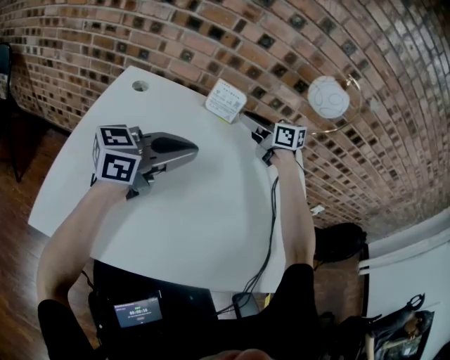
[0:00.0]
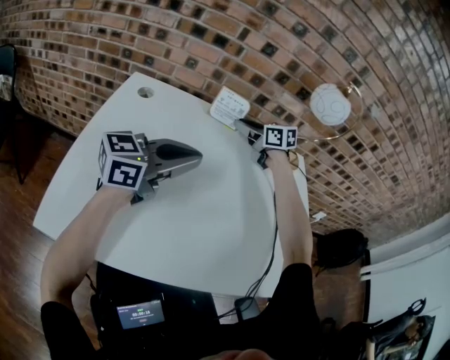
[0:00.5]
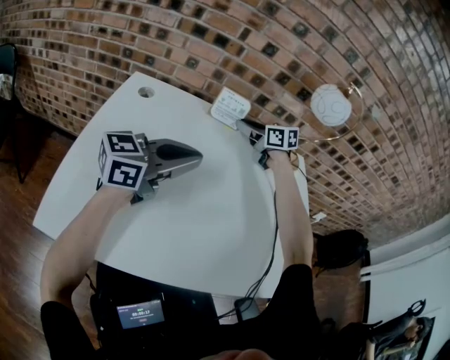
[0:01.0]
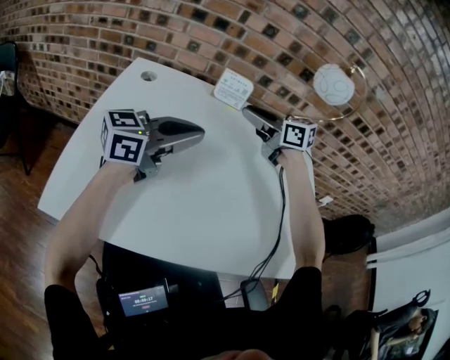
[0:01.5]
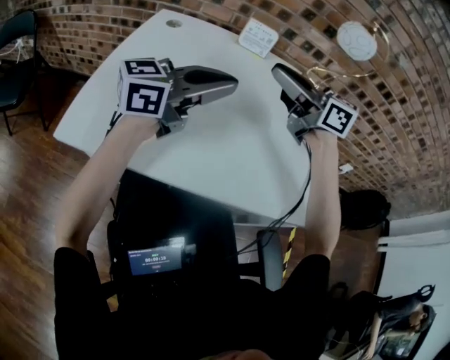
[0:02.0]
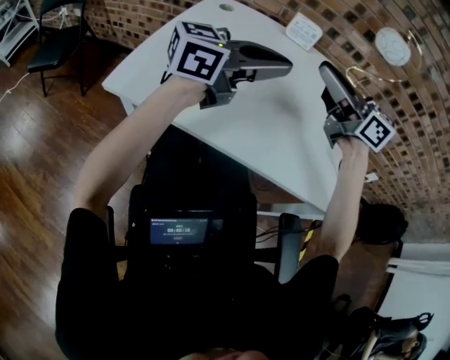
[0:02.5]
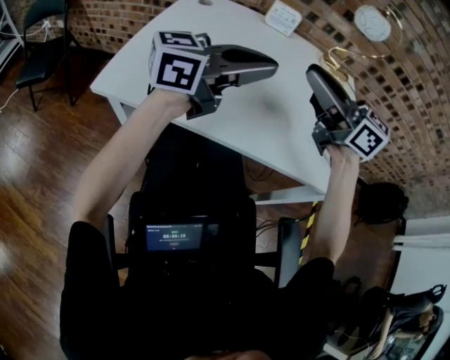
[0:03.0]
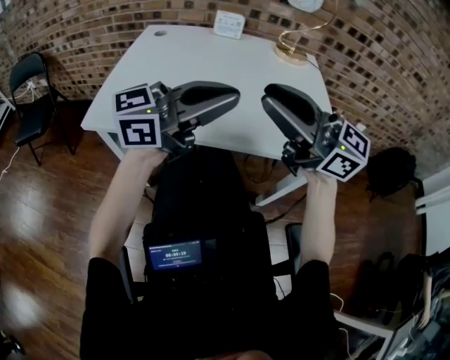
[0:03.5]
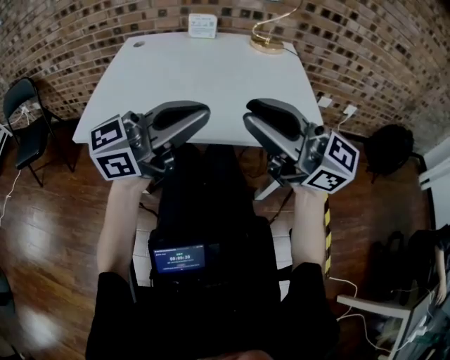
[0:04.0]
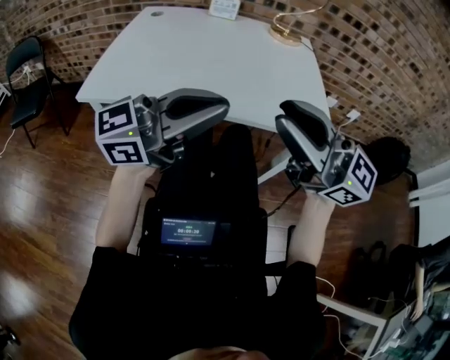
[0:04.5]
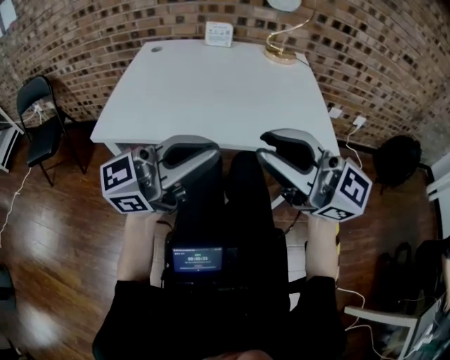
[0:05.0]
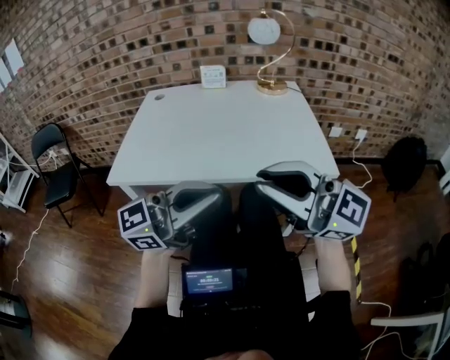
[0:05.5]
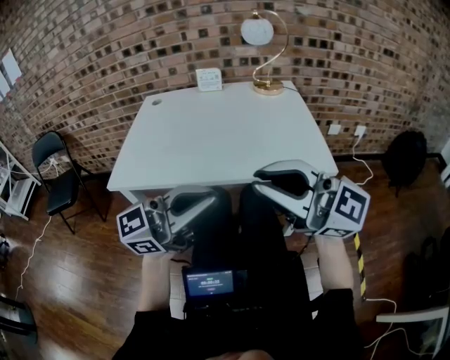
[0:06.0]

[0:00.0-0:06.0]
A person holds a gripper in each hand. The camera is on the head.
0:00.0 to 0:02.0: The left gripper moves roughly 5 cm. The right gripper changes place by about 25 cm.
0:02.0 to 0:04.0: The left gripper shifts by roughly 25 cm, while the right gripper changes place by about 35 cm, and rotates roughly 20 degrees.
0:04.0 to 0:06.0: The right gripper moves approximately 10 cm. The left gripper changes place by approximately 10 cm.

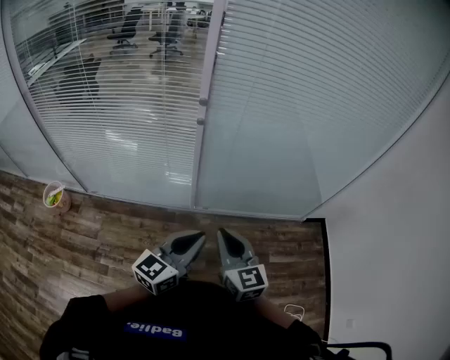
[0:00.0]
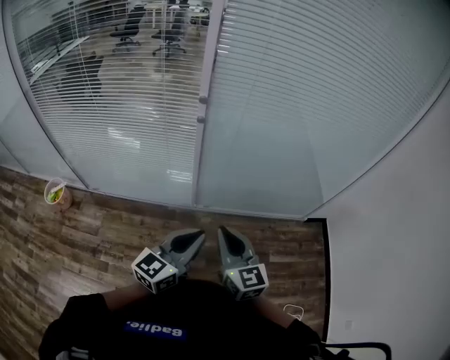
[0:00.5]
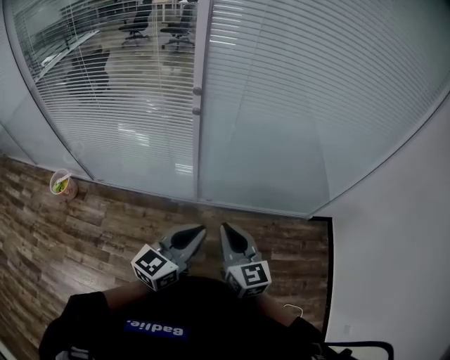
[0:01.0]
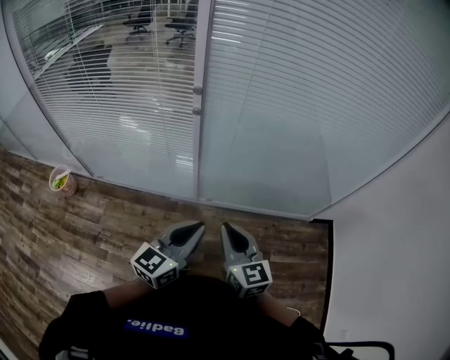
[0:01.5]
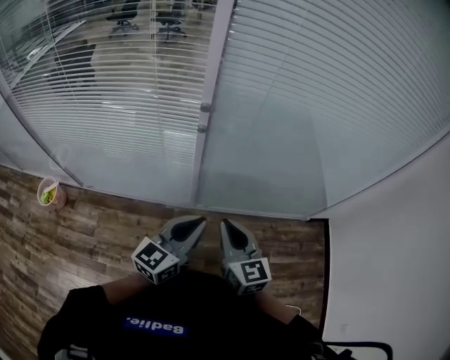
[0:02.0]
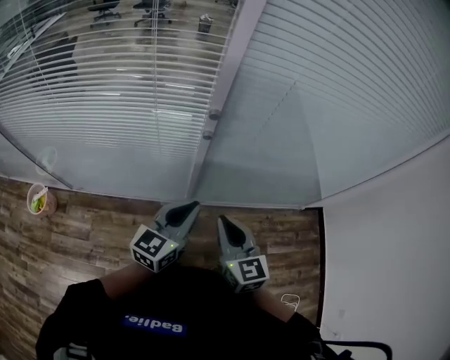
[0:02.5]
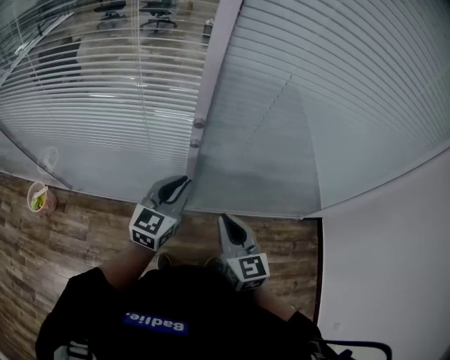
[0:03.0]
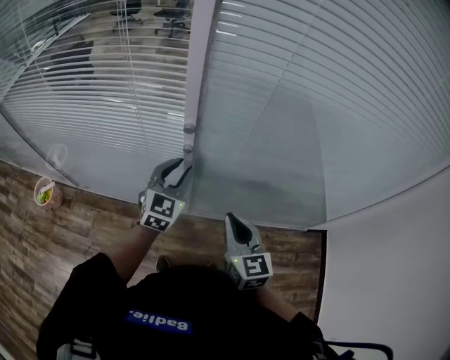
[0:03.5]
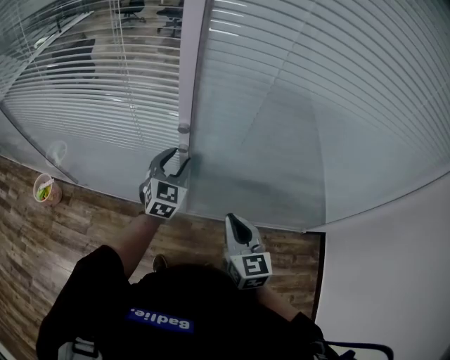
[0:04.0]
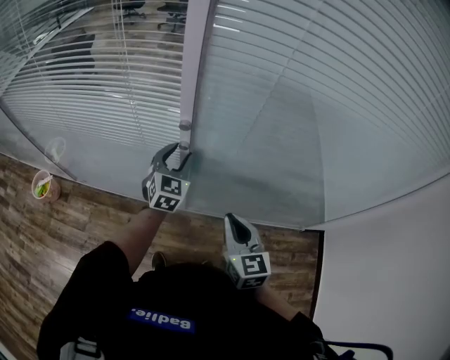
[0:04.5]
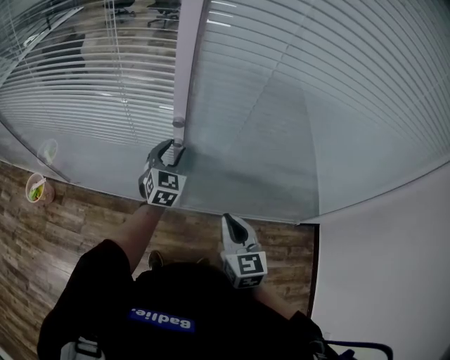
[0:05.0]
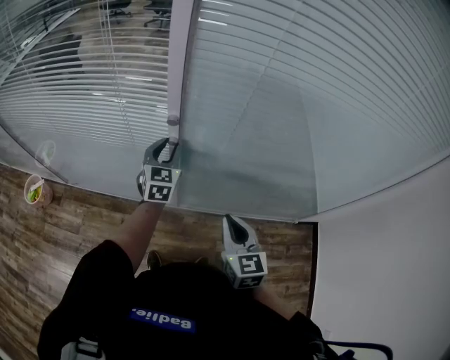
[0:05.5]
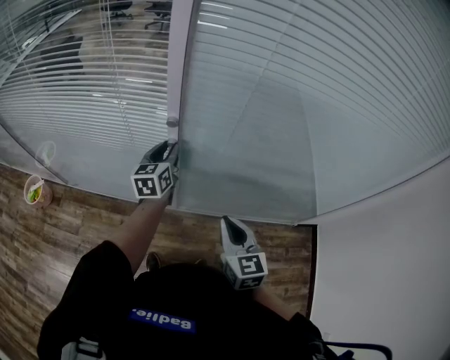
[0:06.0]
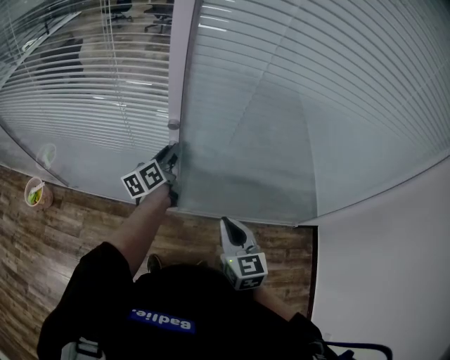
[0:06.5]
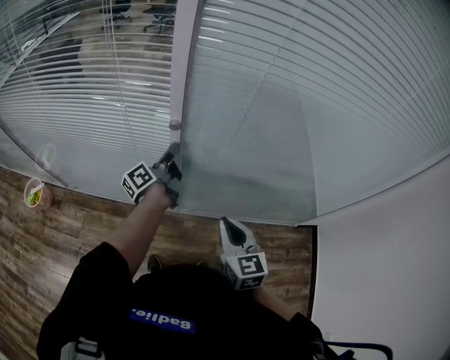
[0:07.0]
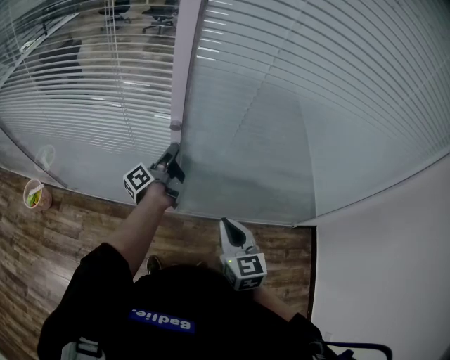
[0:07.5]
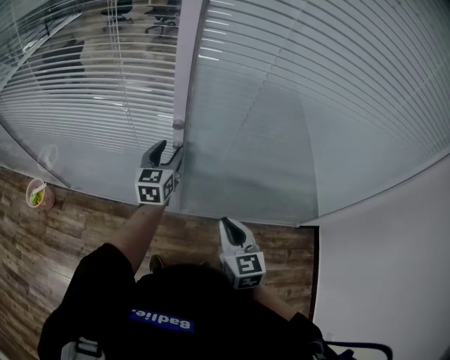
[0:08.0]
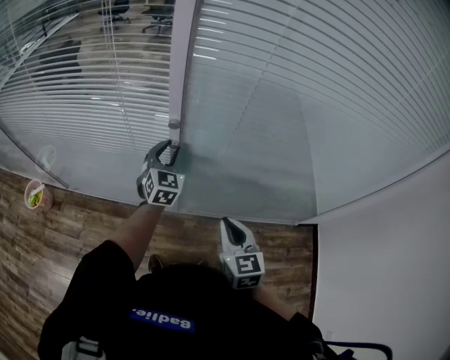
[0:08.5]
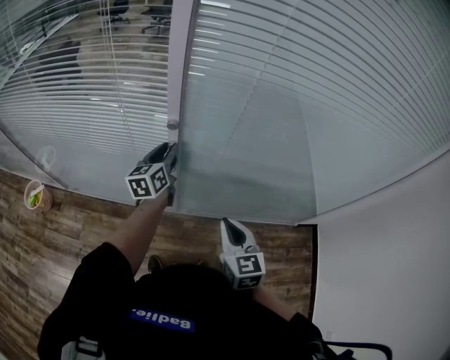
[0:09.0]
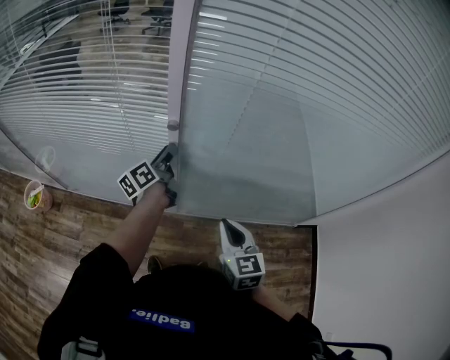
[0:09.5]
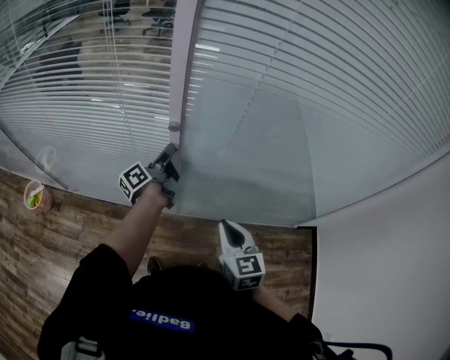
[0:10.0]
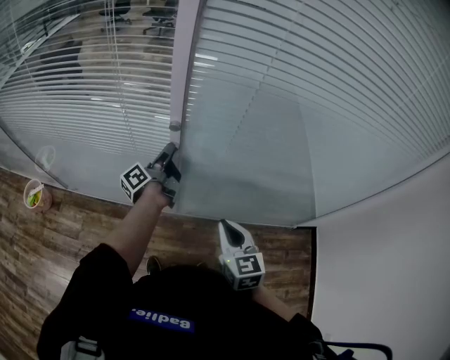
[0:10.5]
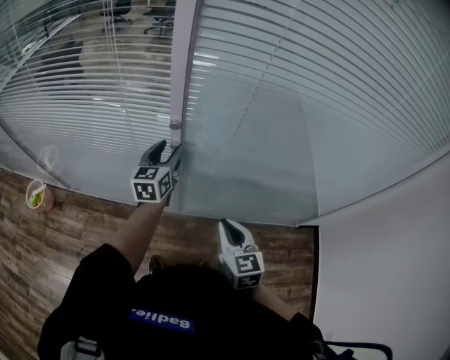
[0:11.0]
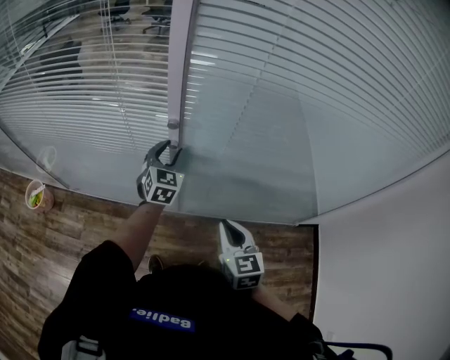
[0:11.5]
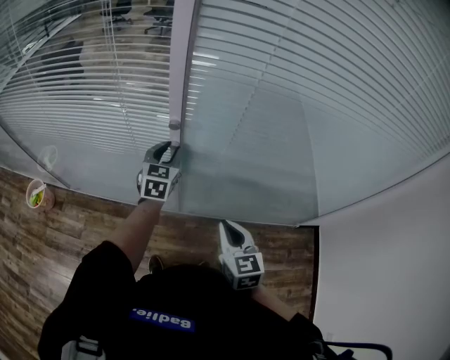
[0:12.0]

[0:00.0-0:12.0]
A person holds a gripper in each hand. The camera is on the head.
0:00.0 to 0:02.0: Both grippers travel together forward, roughly 10 cm.
0:02.0 to 0:04.0: The right gripper heads forward and to the right, covering roughly 10 cm. Meanwhile the left gripper heads forward, covering roughly 25 cm, rotates some 40 degrees, and opens its fingers.
0:04.0 to 0:06.0: The left gripper changes its angle by some 40 degrees.
0:06.0 to 0:08.0: The left gripper opens its fingers.
0:08.0 to 0:10.0: The left gripper rotates around the line of its fingers by some 70 degrees, counterclockwise from behind, and closes its fingers.
0:10.0 to 0:12.0: The left gripper rotates around the line of its fingers by approximately 80 degrees, clockwise from behind, and opens, then closes once more.

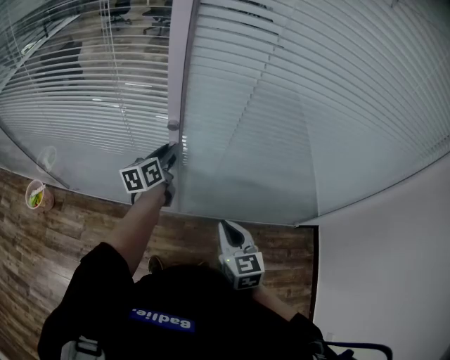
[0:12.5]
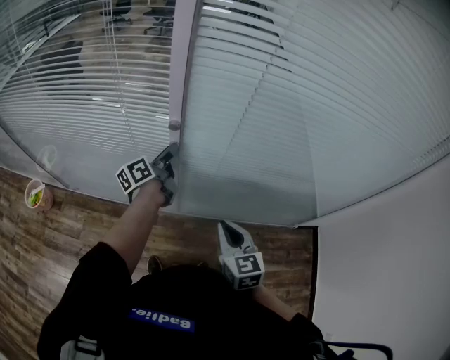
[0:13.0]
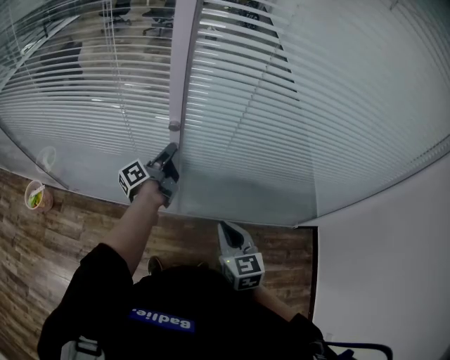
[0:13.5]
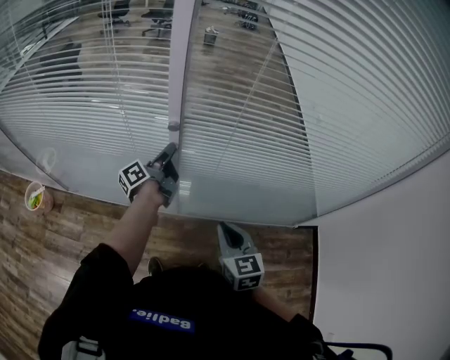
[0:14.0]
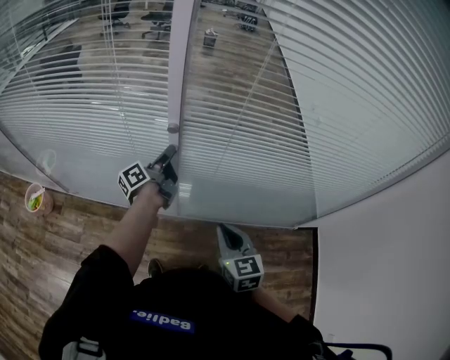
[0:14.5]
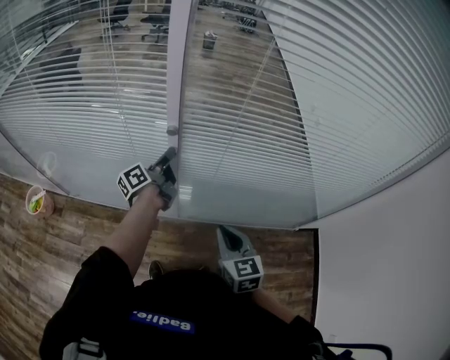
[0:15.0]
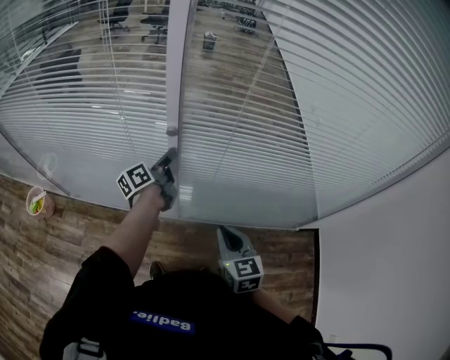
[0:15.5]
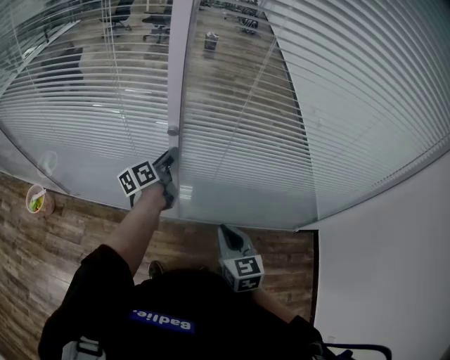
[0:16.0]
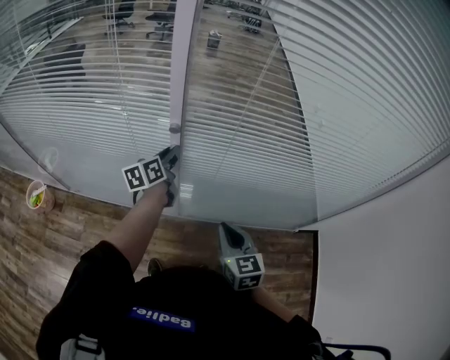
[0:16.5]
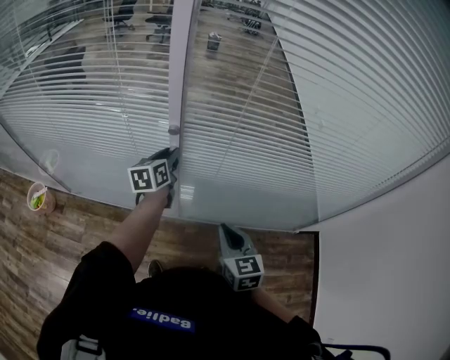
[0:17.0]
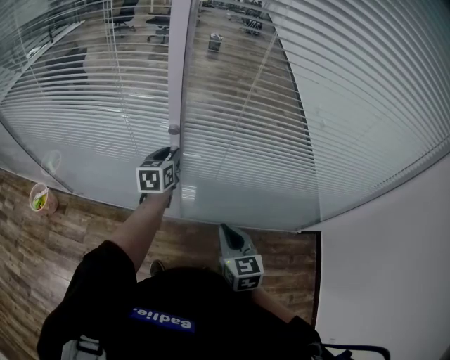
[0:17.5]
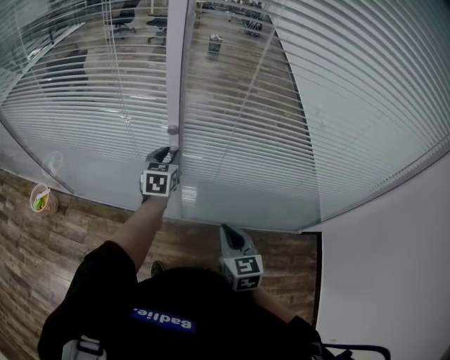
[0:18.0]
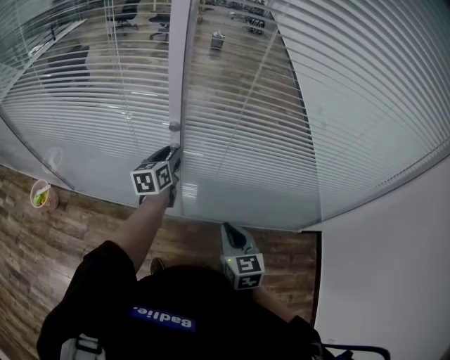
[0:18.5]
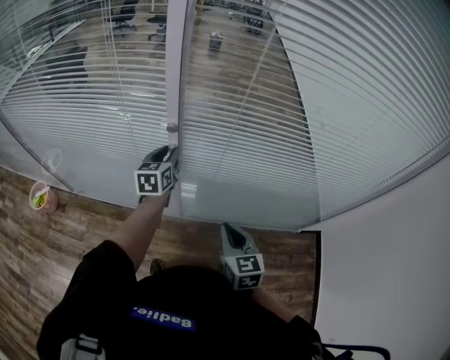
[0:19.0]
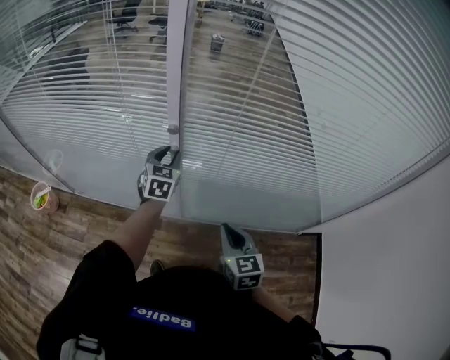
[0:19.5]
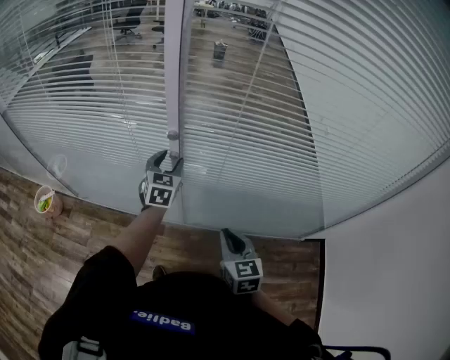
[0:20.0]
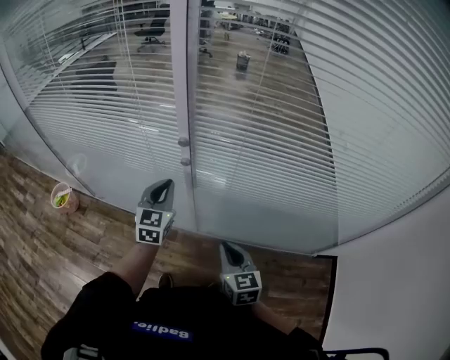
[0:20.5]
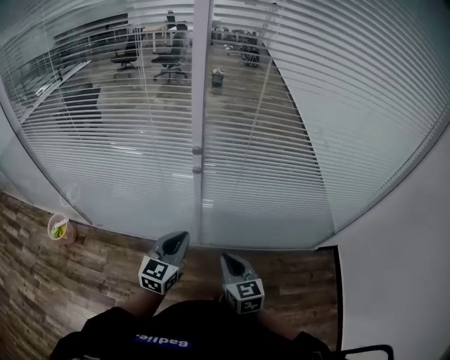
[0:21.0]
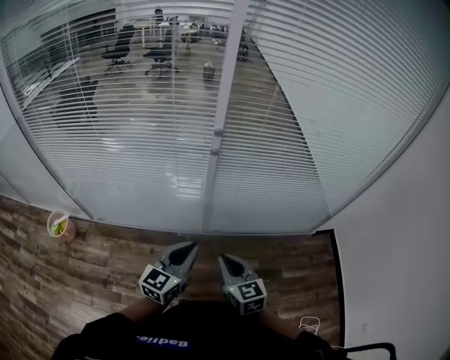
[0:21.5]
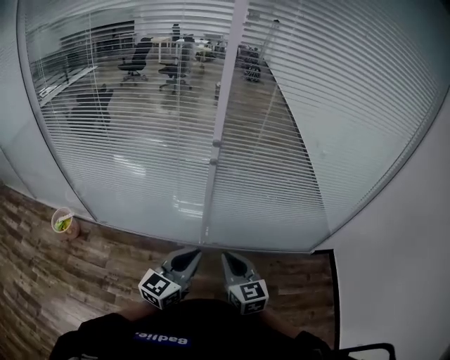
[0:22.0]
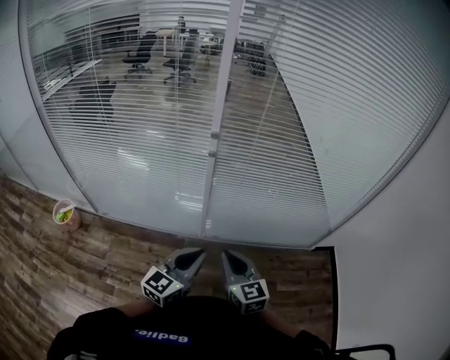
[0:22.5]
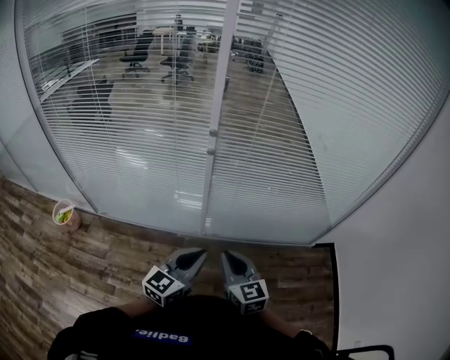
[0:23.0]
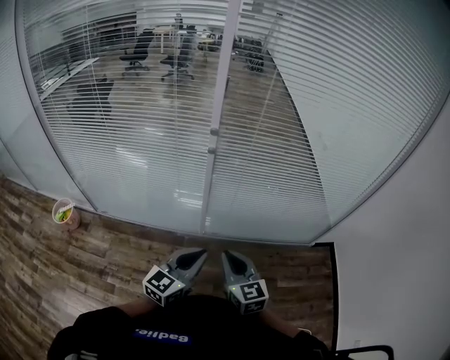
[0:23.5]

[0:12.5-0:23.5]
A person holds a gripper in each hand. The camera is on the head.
0:12.5 to 0:14.5: The left gripper rotates roughly 40 degrees.
0:14.5 to 0:16.0: The left gripper changes its angle by approximately 20 degrees.
0:16.0 to 0:18.0: The left gripper twists about 50 degrees clockwise, seen from behind.
0:20.0 to 0:21.5: The left gripper shifts about 30 cm backward, rotates about 40 degrees, and closes its fingers. The right gripper shifts some 20 cm to the left and backward.
0:21.5 to 0:23.5: The two grippers go roughly 5 cm to the right.
